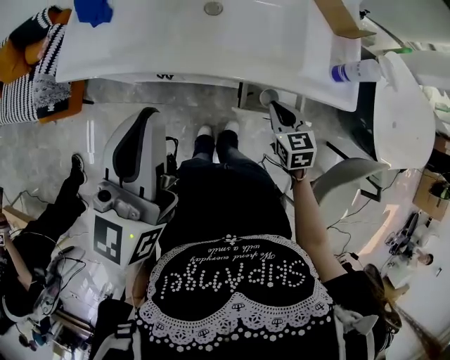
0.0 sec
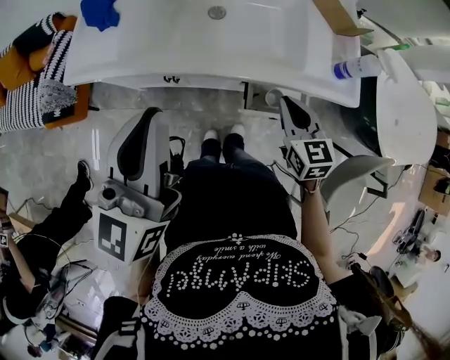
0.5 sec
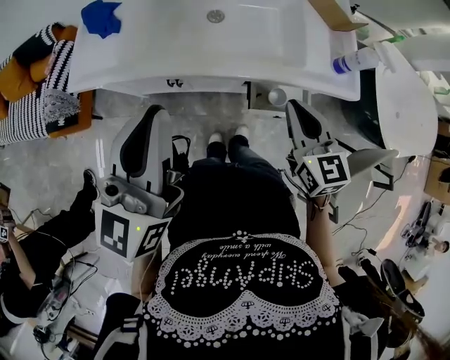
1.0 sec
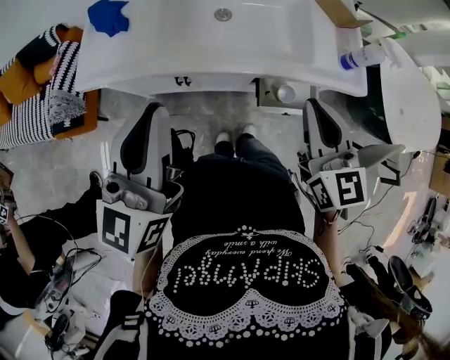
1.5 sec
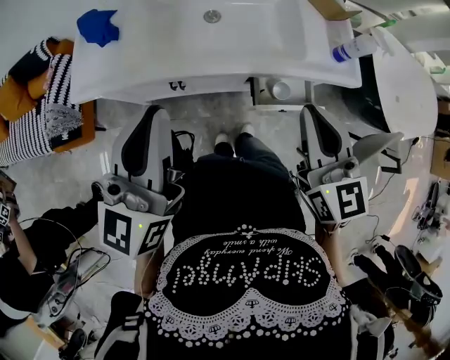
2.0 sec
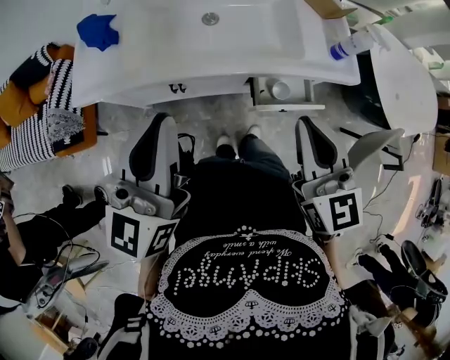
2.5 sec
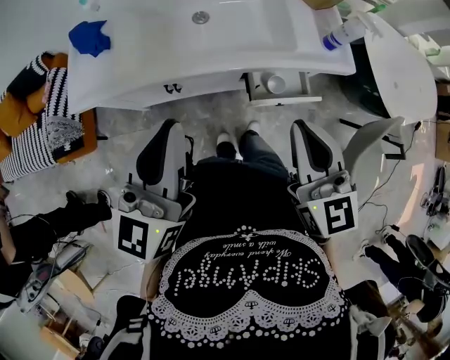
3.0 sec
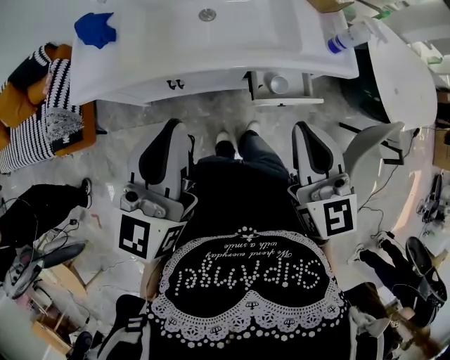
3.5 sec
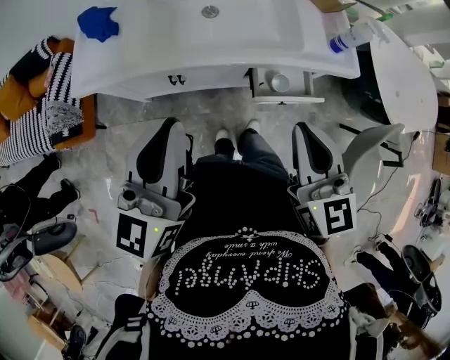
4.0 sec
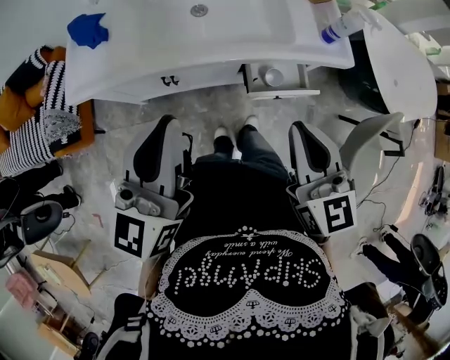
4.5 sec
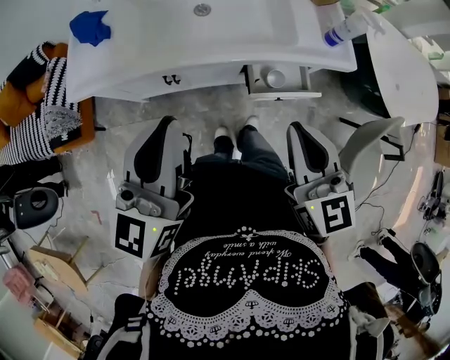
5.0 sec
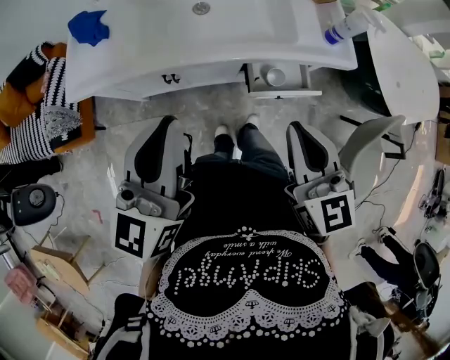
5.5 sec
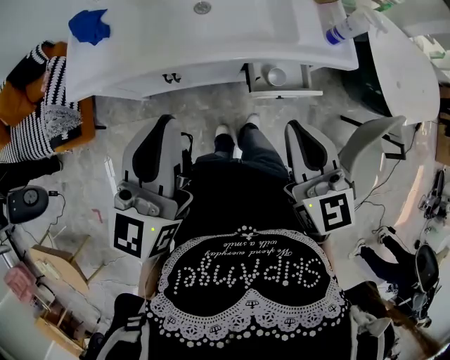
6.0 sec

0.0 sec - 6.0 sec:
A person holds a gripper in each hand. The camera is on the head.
0.0 sec - 2.0 sec: The right gripper goes some 25 cm upward, and changes its angle by about 30 degrees; the left gripper heads to the left, covering approximately 5 cm.
2.0 sec - 4.0 sec: The right gripper heads backward, covering roughly 5 cm.
4.0 sec - 6.0 sec: The grippers make only small movements.

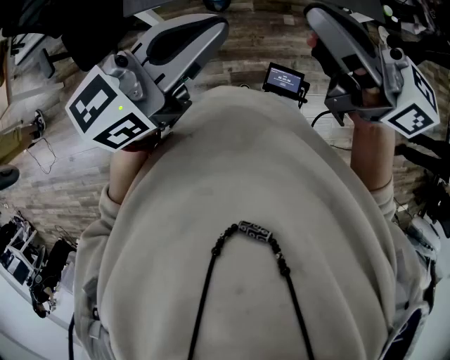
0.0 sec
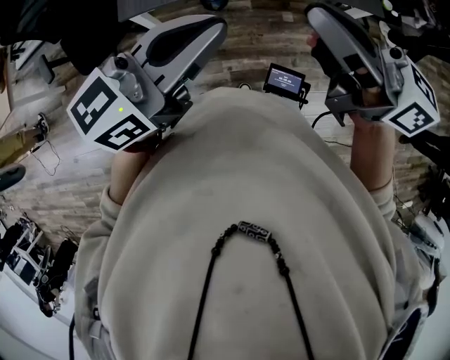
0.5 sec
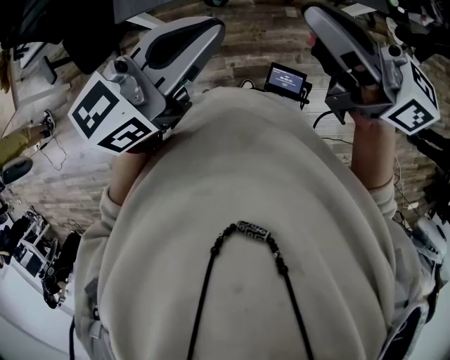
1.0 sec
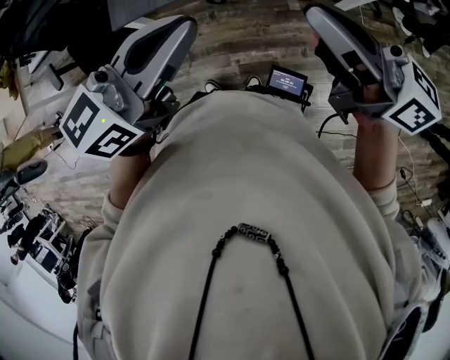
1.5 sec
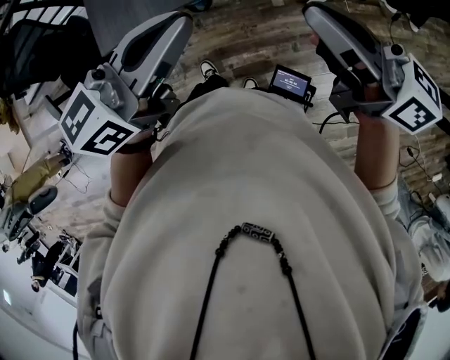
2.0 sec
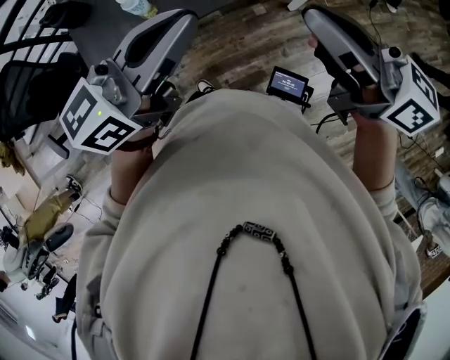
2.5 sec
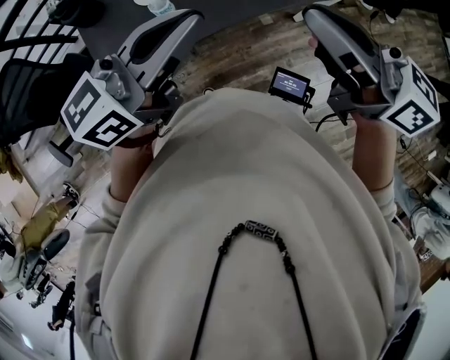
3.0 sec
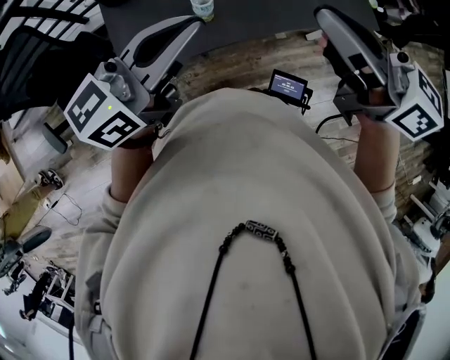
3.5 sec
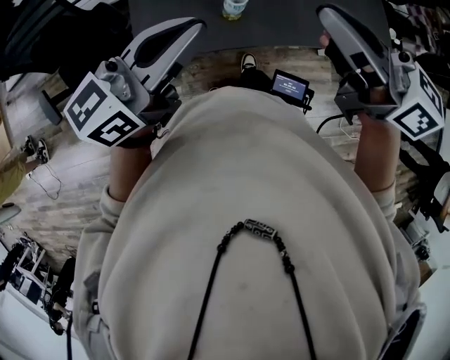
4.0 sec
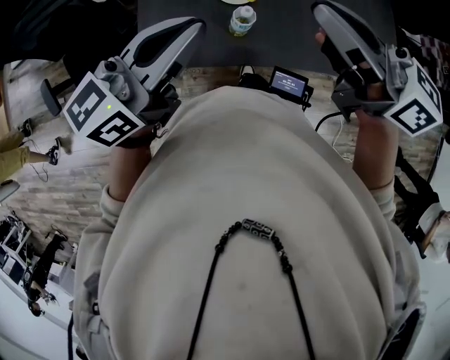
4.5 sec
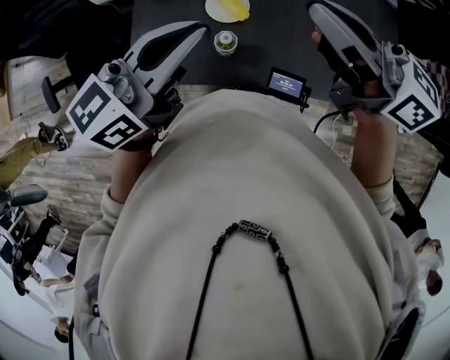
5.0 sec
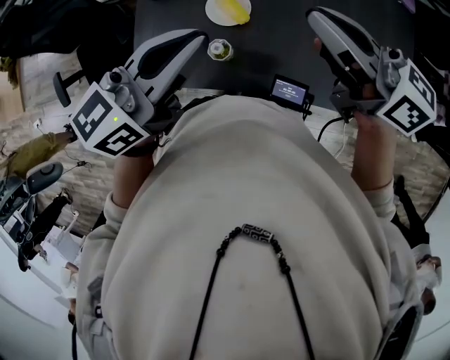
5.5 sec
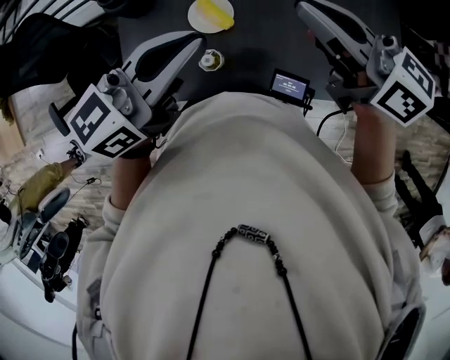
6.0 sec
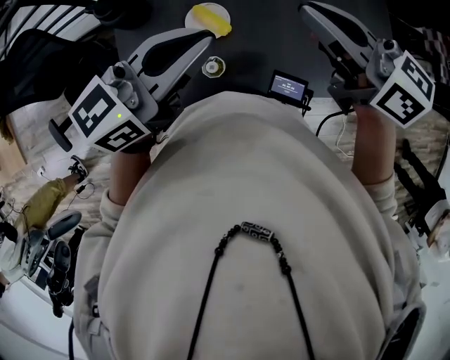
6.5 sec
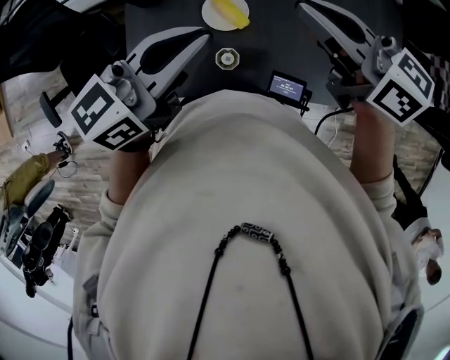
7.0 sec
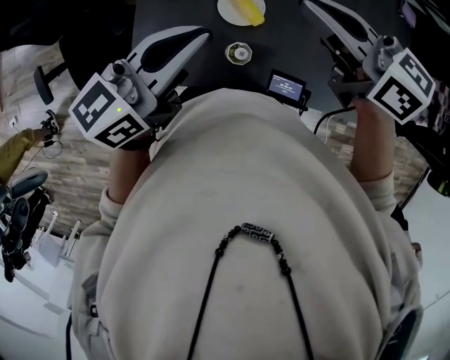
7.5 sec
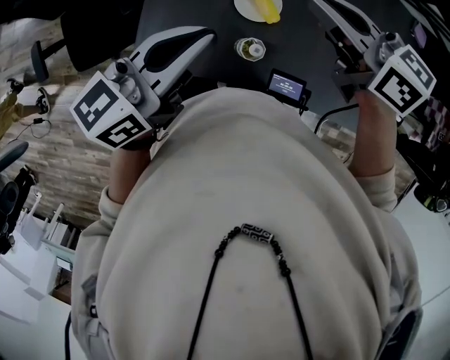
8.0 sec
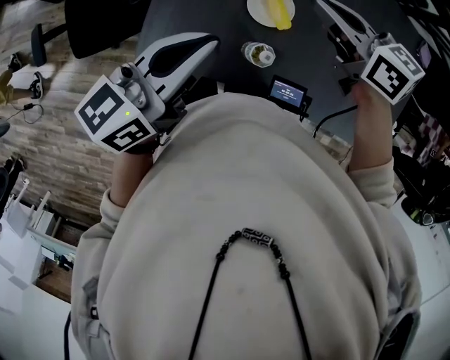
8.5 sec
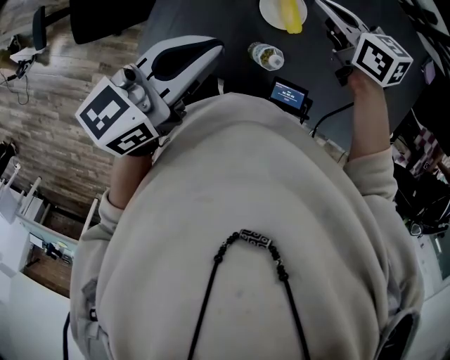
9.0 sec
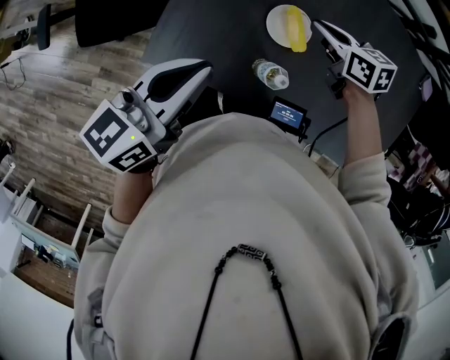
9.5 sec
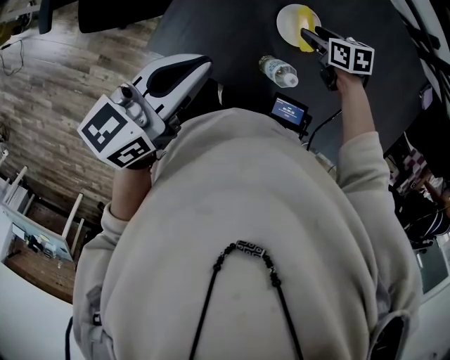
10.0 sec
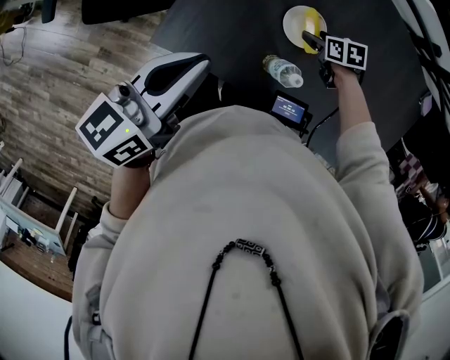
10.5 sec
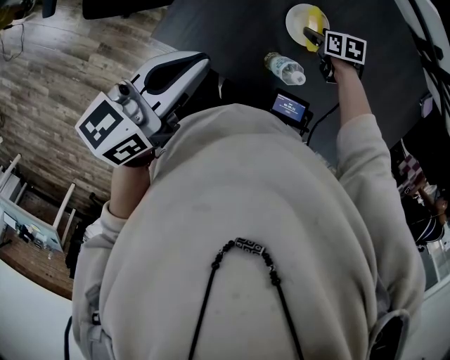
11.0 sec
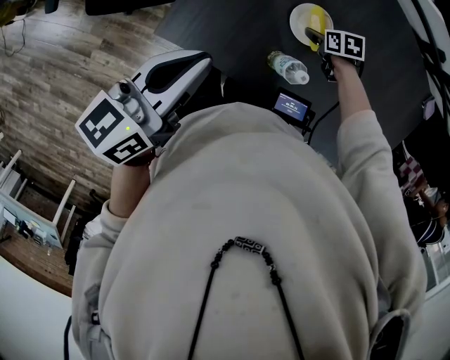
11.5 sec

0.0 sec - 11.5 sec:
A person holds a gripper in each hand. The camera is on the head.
0.0 sec - 2.0 sec: The left gripper moves forward and downward, about 15 cm; the right gripper goes about 15 cm downward, forward and to the right.
4.0 sec - 6.0 sec: The right gripper shifts roughly 5 cm forward.
6.0 sec - 7.5 sec: The left gripper shifts by about 5 cm. The right gripper is displaced to the left by about 5 cm.
7.5 sec - 9.5 sec: The right gripper heads downward, covering approximately 20 cm, and turns by roughly 30 degrees. The left gripper heads to the left and downward, covering about 10 cm, and rotates some 20 degrees.
9.5 sec - 11.5 sec: The right gripper goes about 20 cm downward, swivels roughly 30 degrees, and opens.

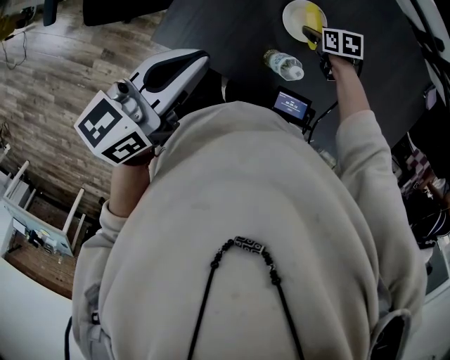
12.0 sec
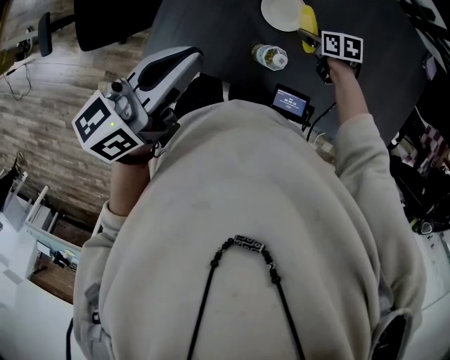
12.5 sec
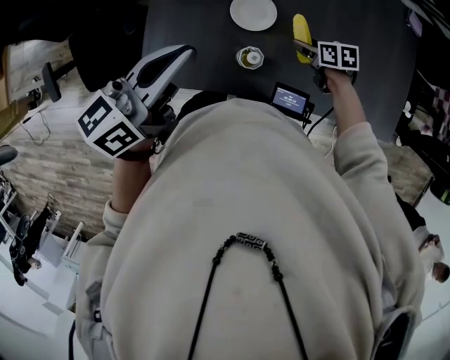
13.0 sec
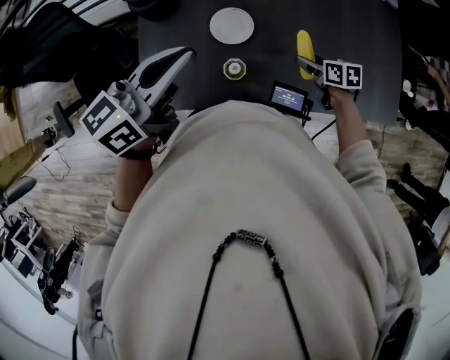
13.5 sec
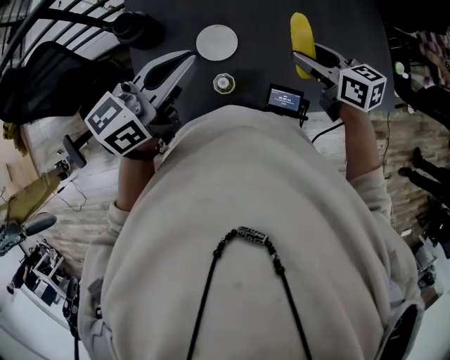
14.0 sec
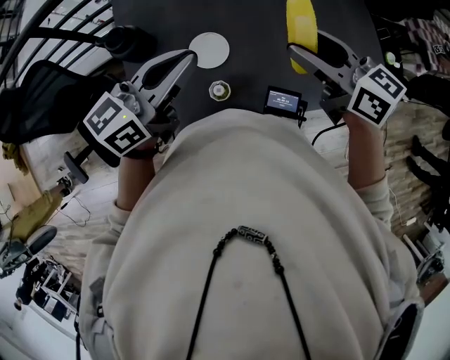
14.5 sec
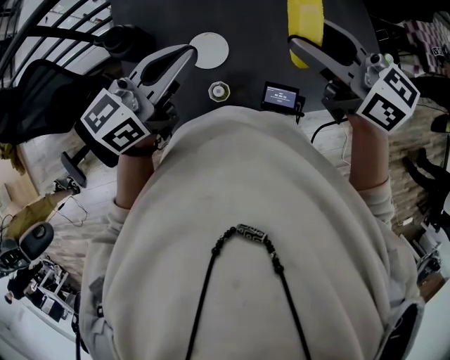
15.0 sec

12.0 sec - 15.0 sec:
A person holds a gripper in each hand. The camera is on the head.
12.0 sec - 13.5 sec: The left gripper changes place by some 15 cm, and swivels some 30 degrees; the right gripper changes place by about 20 cm, and changes its angle by some 40 degrees.
13.5 sec - 15.0 sec: The right gripper travels upward by approximately 35 cm, and tips its fingers upward by roughly 40 degrees, while the left gripper heads to the right, covering roughly 5 cm.

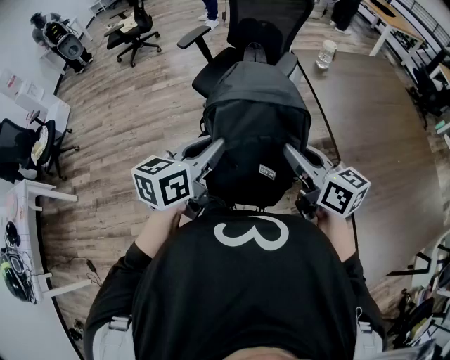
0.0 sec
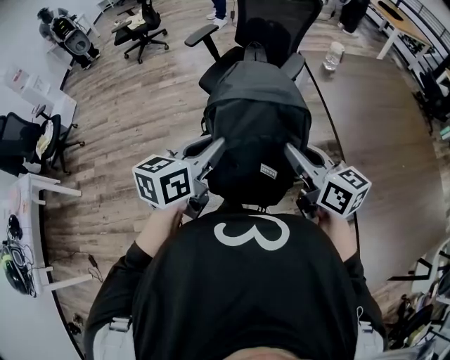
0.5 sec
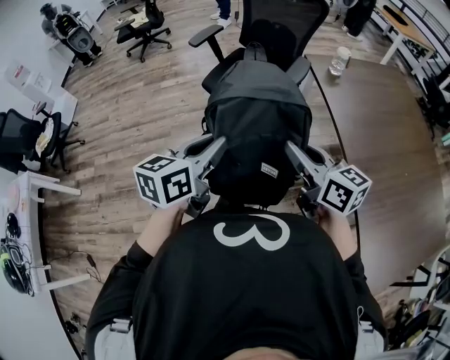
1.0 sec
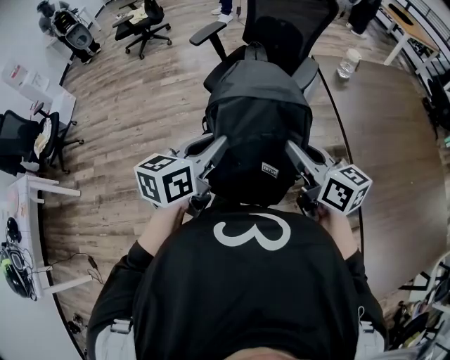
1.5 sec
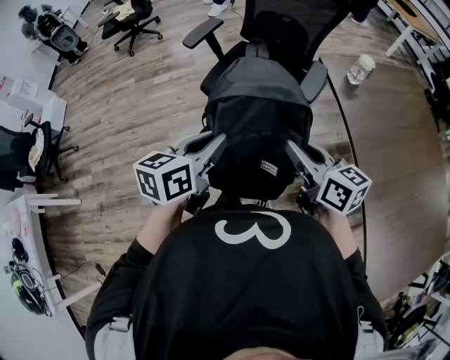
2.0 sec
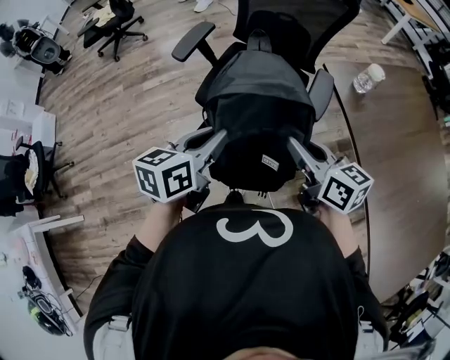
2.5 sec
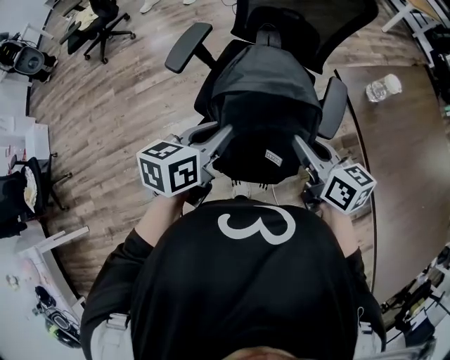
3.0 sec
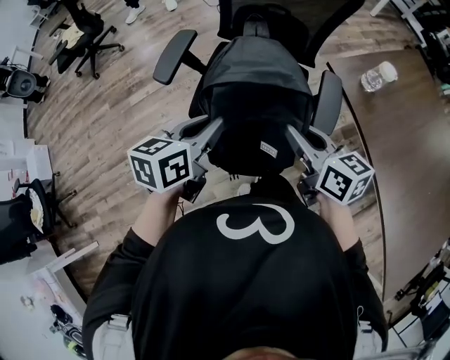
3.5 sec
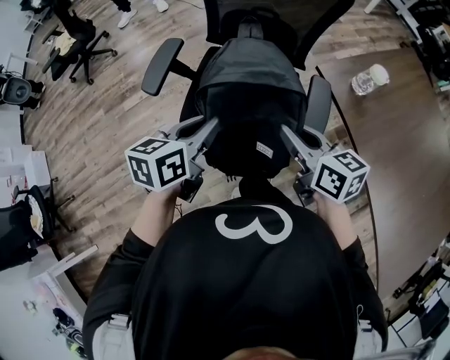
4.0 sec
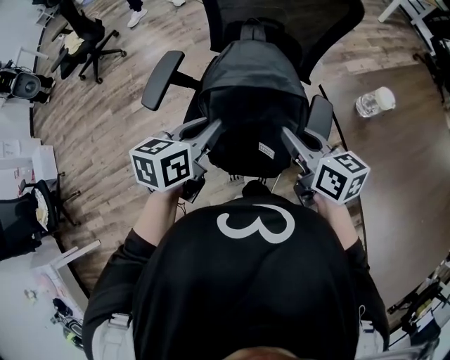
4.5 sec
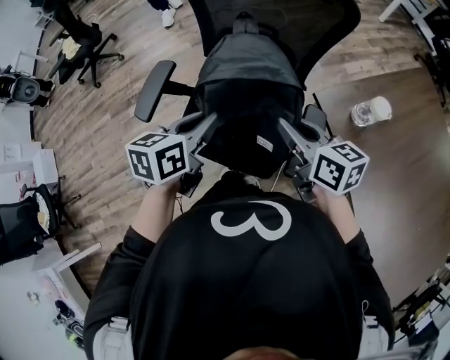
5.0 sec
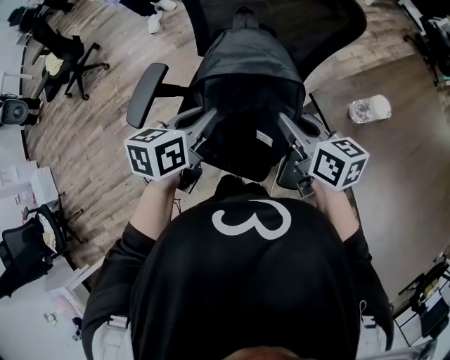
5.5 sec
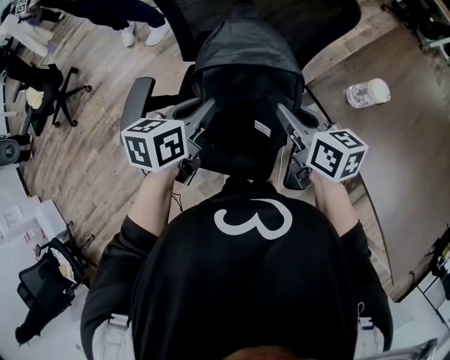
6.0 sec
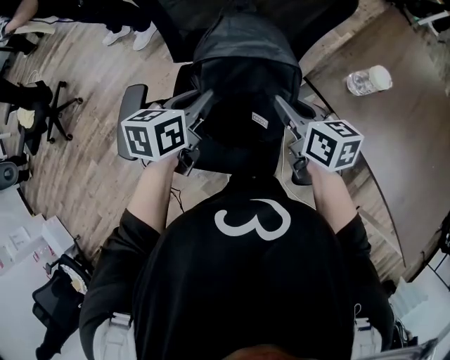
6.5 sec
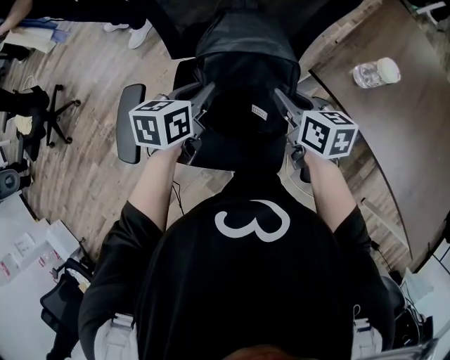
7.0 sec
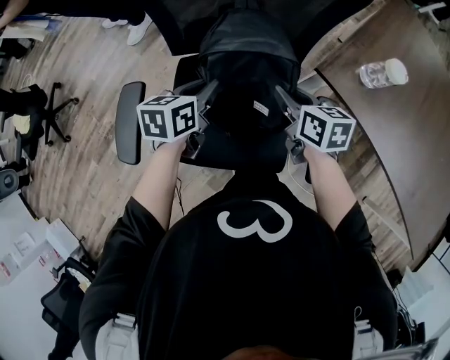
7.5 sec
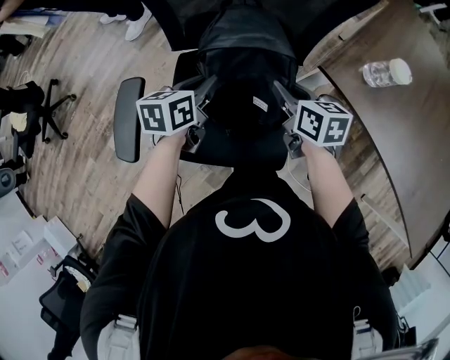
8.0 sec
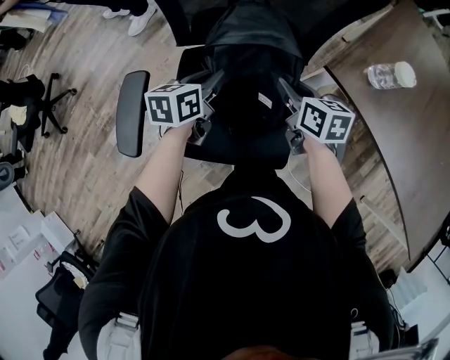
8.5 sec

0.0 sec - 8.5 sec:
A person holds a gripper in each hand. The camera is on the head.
0.0 sec - 2.0 sec: Both grippers travel together forward, roughly 20 cm.
2.0 sec - 4.0 sec: Both grippers move forward, some 30 cm.
4.0 sec - 6.5 sec: Both grippers travel together forward, approximately 25 cm. The right gripper turns by roughly 20 degrees.
6.5 sec - 8.5 sec: Both grippers travel together downward, roughly 10 cm.
